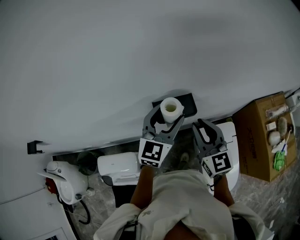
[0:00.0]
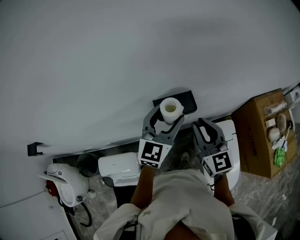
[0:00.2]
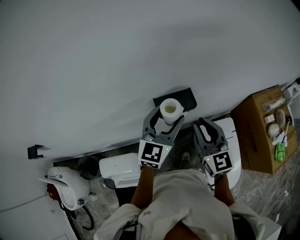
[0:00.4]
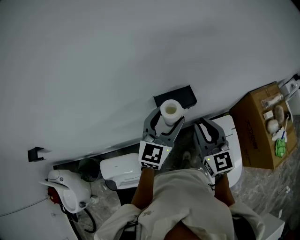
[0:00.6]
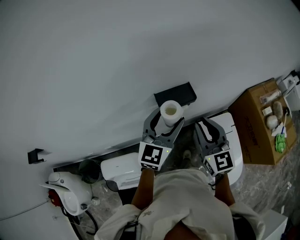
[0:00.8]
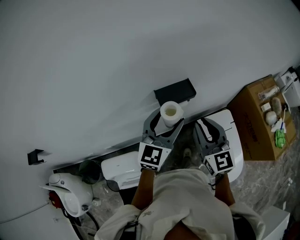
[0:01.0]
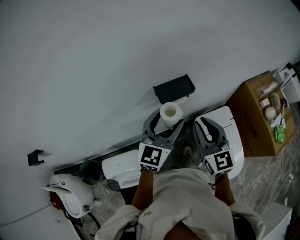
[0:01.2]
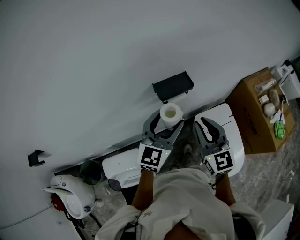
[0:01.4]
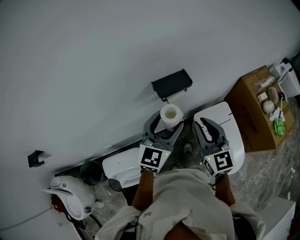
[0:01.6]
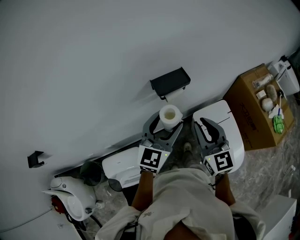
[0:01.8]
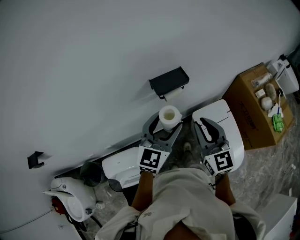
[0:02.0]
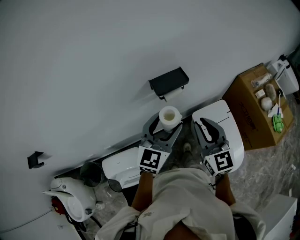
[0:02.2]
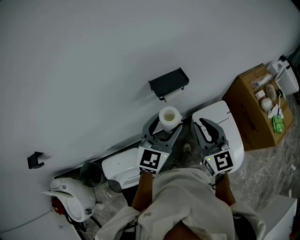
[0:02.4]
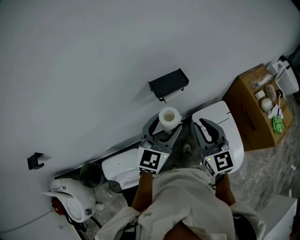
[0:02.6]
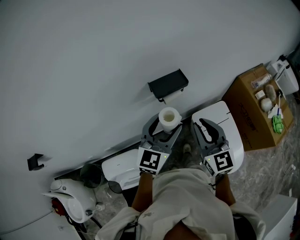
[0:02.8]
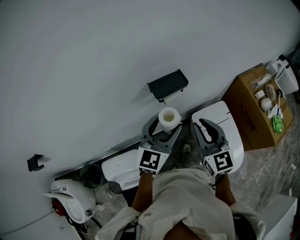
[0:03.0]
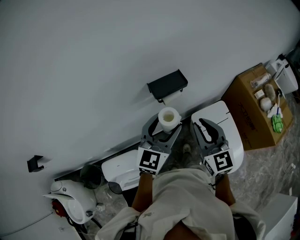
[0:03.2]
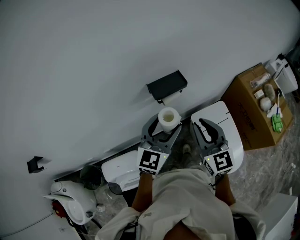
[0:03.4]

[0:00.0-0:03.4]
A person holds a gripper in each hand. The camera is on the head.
0.0 to 1.6 s: The two grippers go about 15 cm backward.
1.6 to 3.4 s: The grippers stay close to where they were, moving slightly.

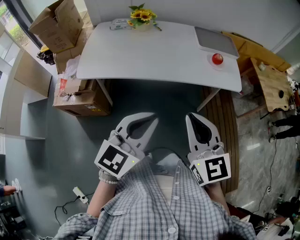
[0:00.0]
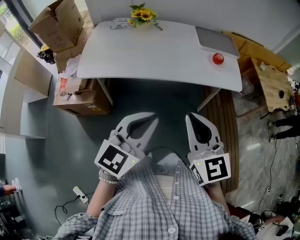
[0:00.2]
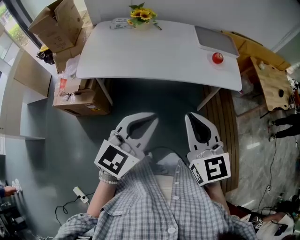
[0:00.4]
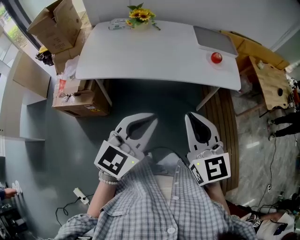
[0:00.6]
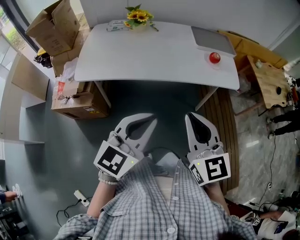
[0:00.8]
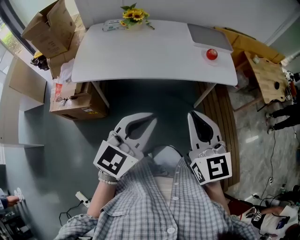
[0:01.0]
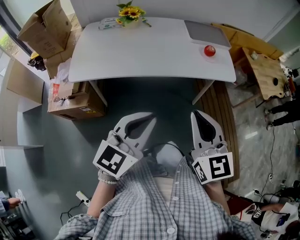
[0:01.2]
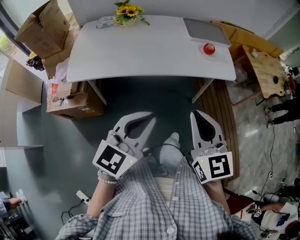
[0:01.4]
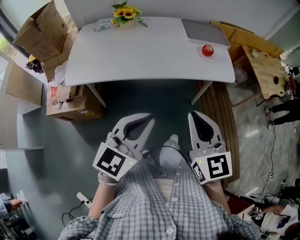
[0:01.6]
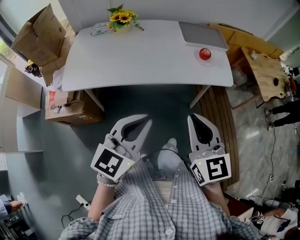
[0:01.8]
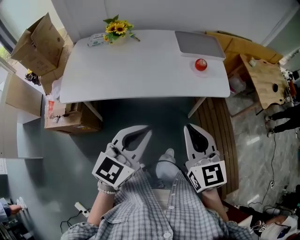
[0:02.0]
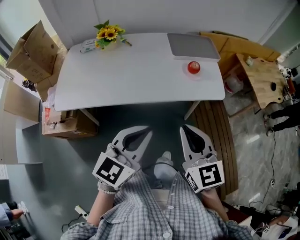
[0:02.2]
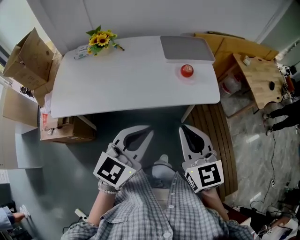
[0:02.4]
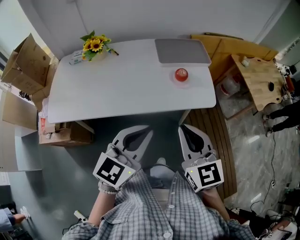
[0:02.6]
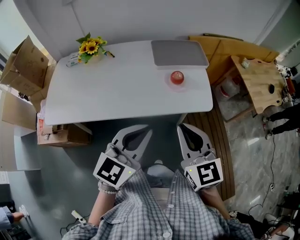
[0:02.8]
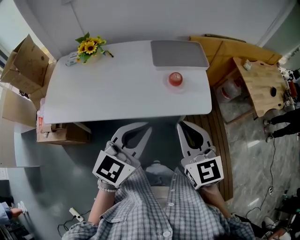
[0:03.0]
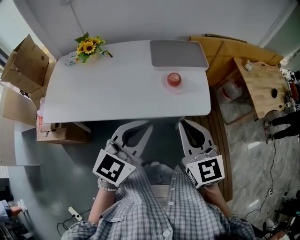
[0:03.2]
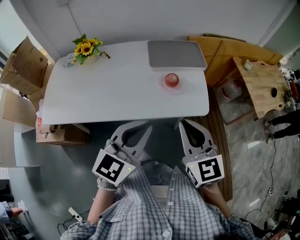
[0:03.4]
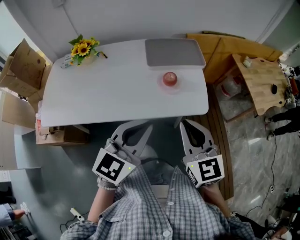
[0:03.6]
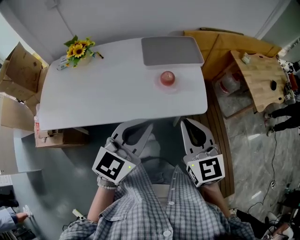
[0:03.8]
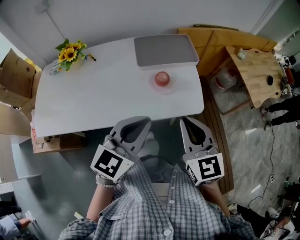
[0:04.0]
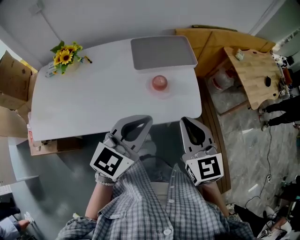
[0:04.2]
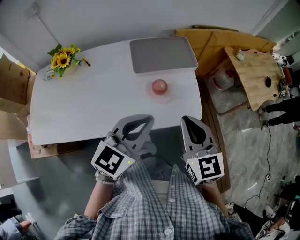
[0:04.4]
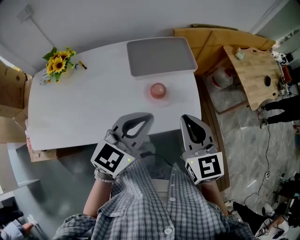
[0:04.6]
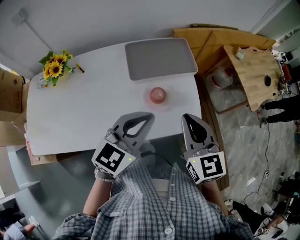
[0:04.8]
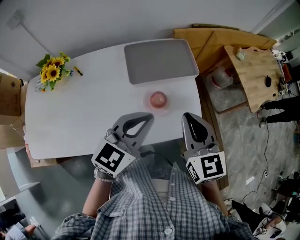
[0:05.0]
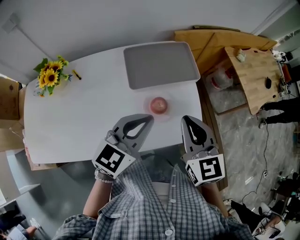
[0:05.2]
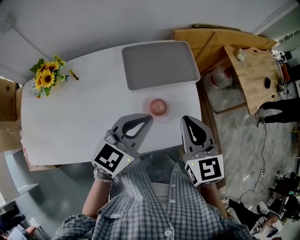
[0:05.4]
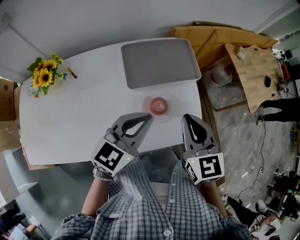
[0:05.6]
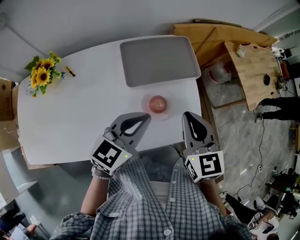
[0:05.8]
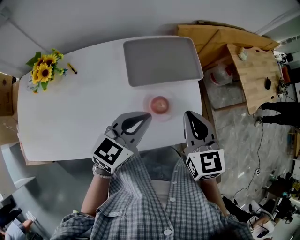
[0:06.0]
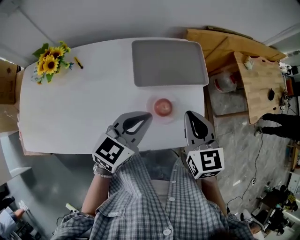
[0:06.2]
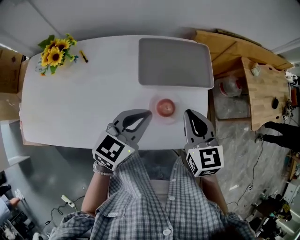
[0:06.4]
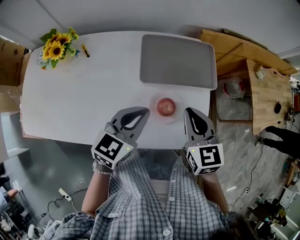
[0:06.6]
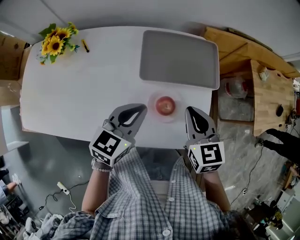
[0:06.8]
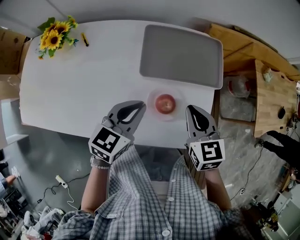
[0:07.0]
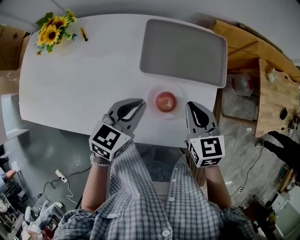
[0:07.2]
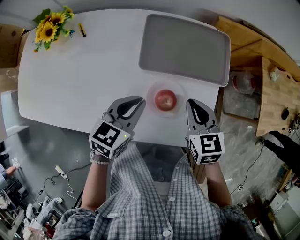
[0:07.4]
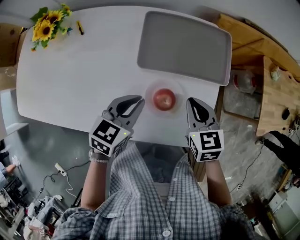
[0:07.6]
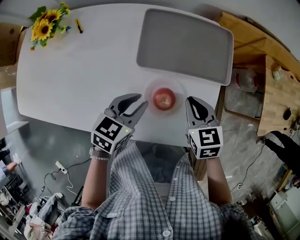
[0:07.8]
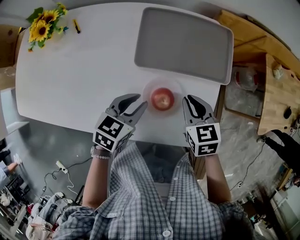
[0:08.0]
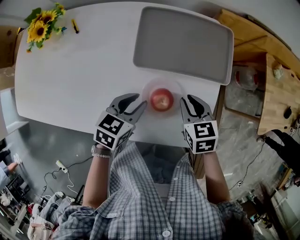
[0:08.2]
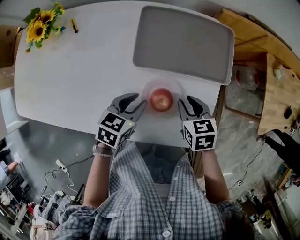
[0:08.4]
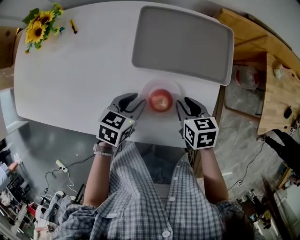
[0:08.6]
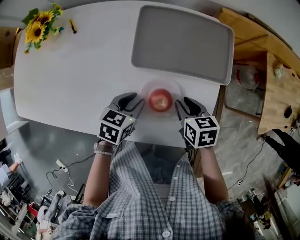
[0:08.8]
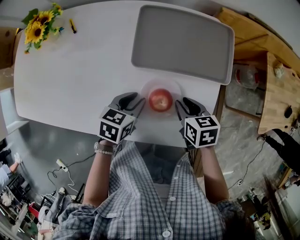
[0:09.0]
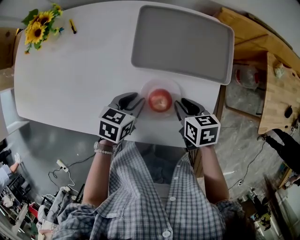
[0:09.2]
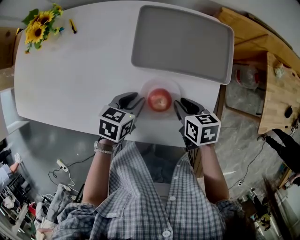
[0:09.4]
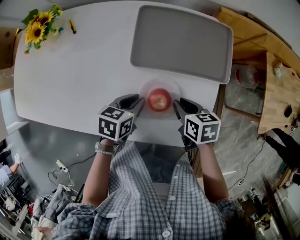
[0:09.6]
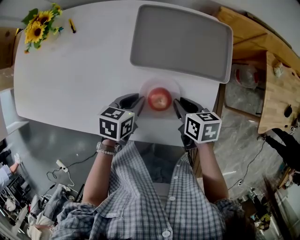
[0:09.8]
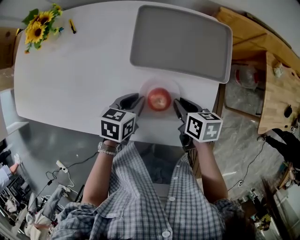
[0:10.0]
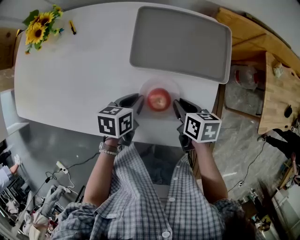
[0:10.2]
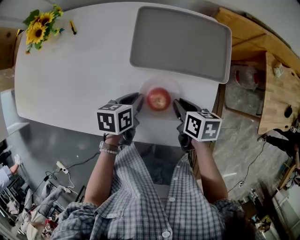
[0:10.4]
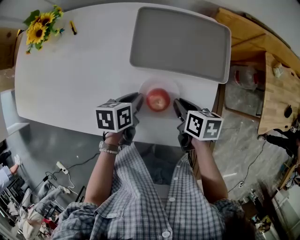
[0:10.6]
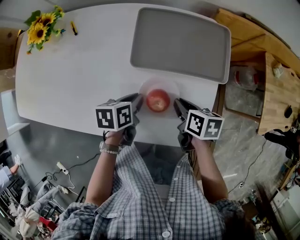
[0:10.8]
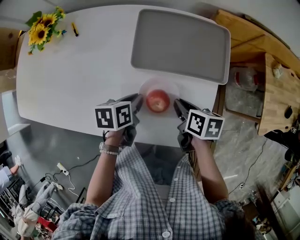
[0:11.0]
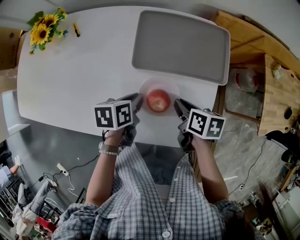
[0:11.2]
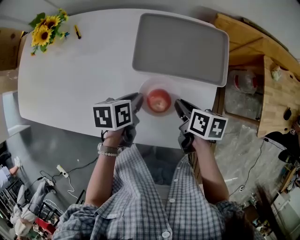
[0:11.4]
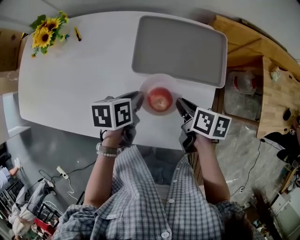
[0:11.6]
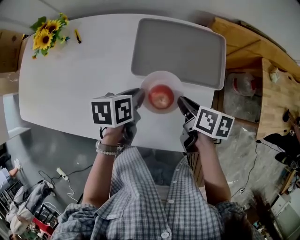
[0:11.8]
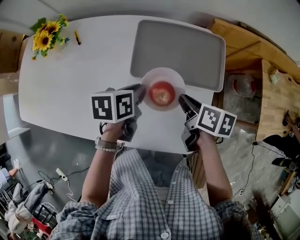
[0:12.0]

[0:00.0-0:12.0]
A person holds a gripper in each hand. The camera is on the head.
0.0 to 1.6 s: The grippers make only small movements.
1.6 to 3.0 s: The grippers both shift forward and to the right by approximately 25 cm.
3.0 to 4.4 s: The left gripper is displaced forward by about 15 cm. The right gripper moves forward and to the right, roughly 15 cm.
4.4 to 6.0 s: The left gripper shifts roughly 15 cm forward and downward. The right gripper heads forward, covering roughly 15 cm.
6.0 to 7.6 s: The right gripper is displaced downward and forward by some 15 cm, and swivels about 30 degrees. Meanwhile the left gripper shifts roughly 10 cm downward, and rotates some 30 degrees.
7.6 to 9.0 s: Both grippers travel together downward, roughly 10 cm. The right gripper changes its angle by about 30 degrees. The left gripper opens.
9.0 to 10.4 s: The left gripper swivels about 20 degrees.
10.4 to 12.0 s: Both grippers move upward and forward, some 10 cm.

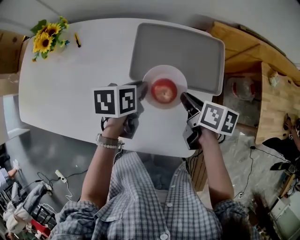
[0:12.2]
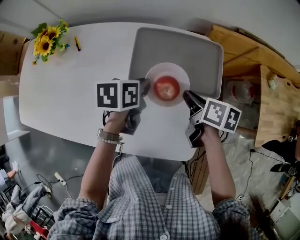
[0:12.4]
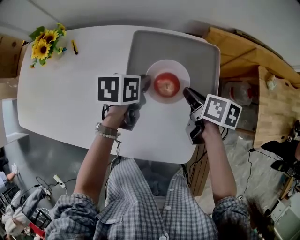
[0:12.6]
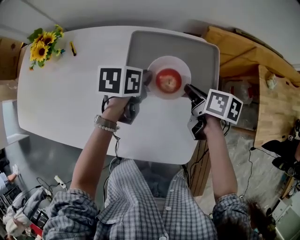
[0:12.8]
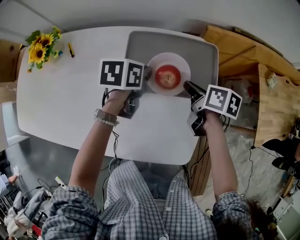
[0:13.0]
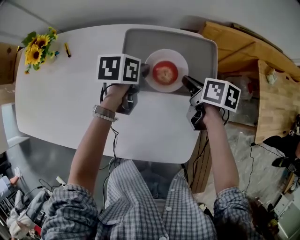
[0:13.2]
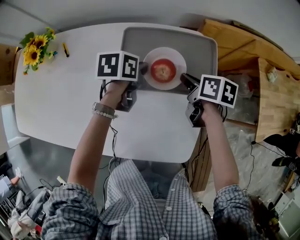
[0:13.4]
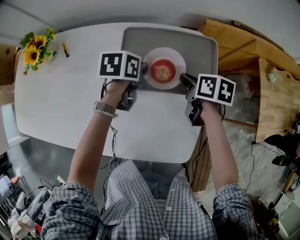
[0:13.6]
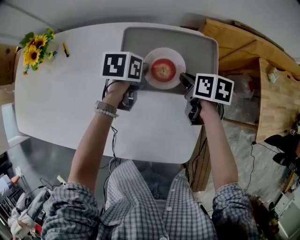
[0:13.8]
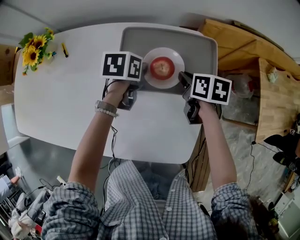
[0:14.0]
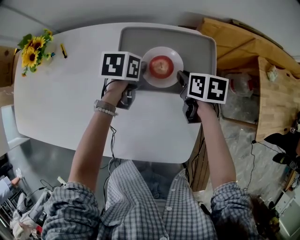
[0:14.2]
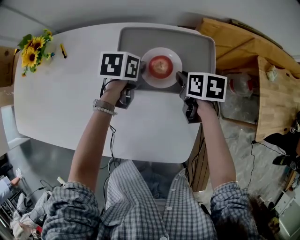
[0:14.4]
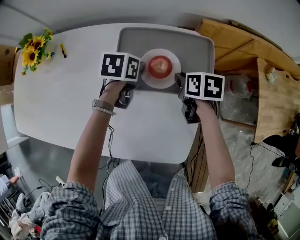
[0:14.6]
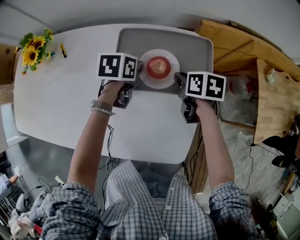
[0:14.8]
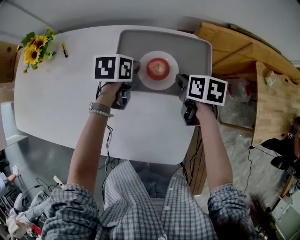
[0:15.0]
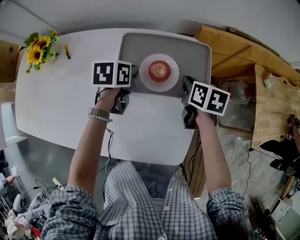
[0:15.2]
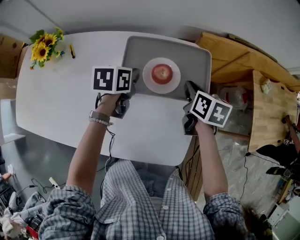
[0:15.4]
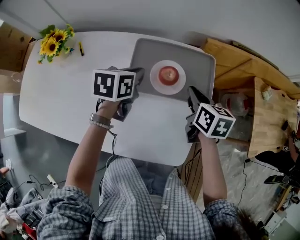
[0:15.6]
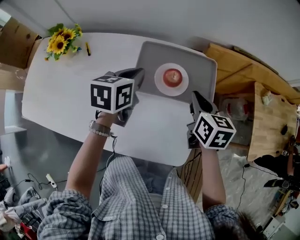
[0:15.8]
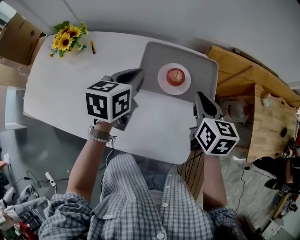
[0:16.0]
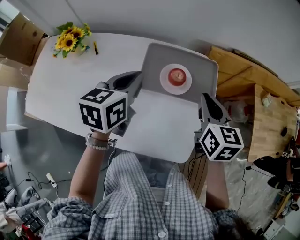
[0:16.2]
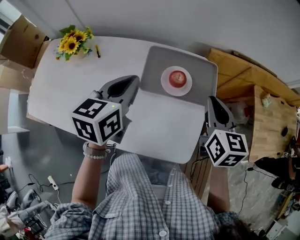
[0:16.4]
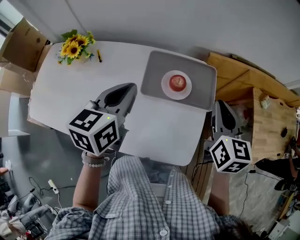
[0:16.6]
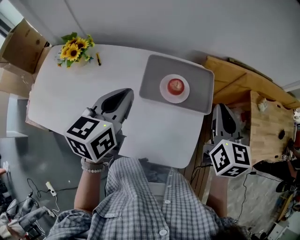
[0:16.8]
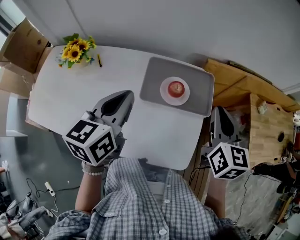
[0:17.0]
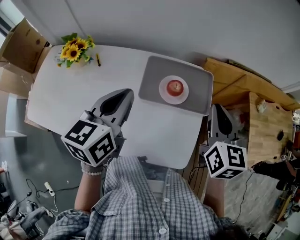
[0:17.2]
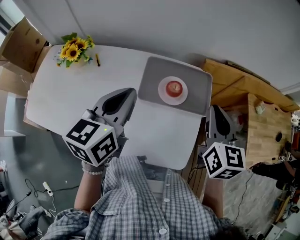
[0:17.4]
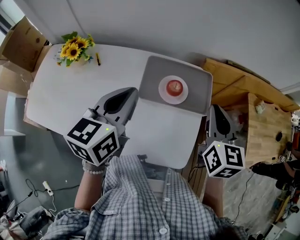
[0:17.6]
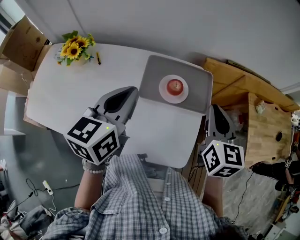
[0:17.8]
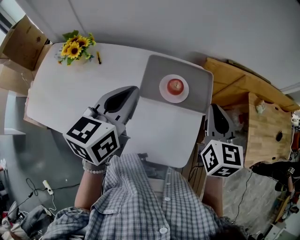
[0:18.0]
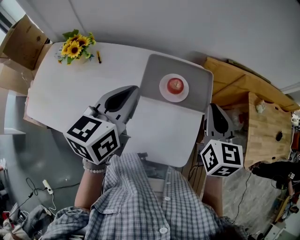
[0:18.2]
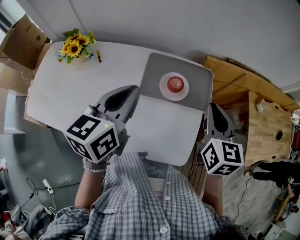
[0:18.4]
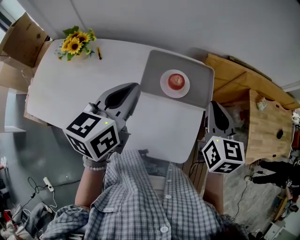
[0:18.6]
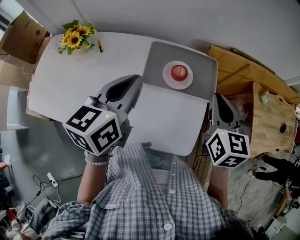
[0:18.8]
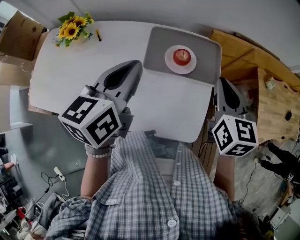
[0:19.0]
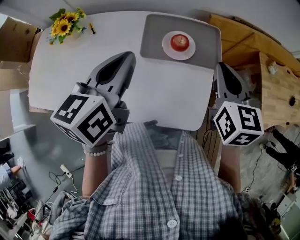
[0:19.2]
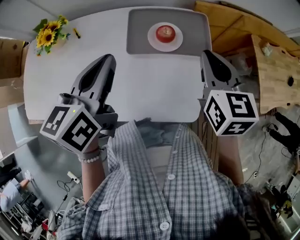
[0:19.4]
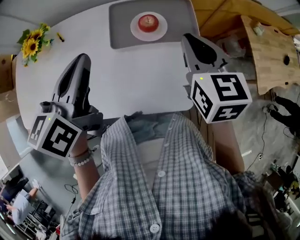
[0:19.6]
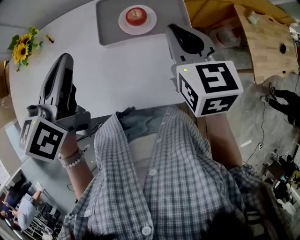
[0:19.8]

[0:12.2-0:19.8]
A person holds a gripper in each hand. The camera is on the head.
12.2 to 13.8 s: Both grippers move forward, approximately 10 cm.
13.8 to 15.2 s: There are only small adjustments of the grippers.
15.2 to 16.8 s: The grippers both shift upward and backward by about 25 cm. The left gripper angles its fingers upward, by approximately 30 degrees; the right gripper rotates some 40 degrees.
16.8 to 18.2 s: The grippers make only small movements.
18.2 to 19.8 s: There are only small adjustments of the grippers.

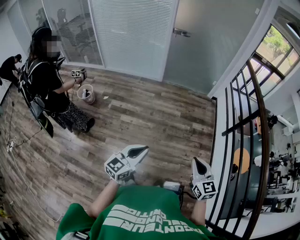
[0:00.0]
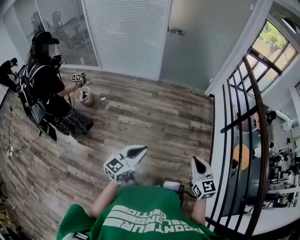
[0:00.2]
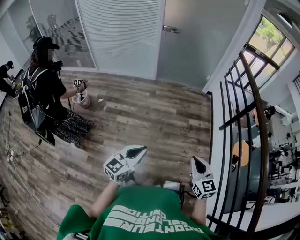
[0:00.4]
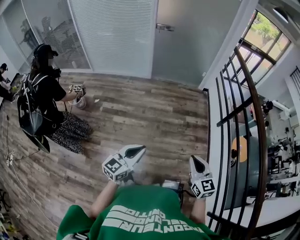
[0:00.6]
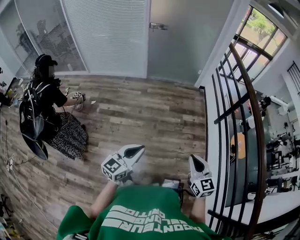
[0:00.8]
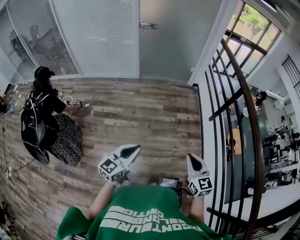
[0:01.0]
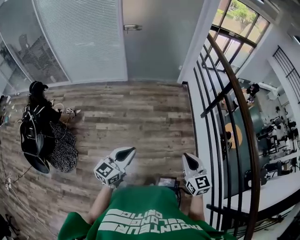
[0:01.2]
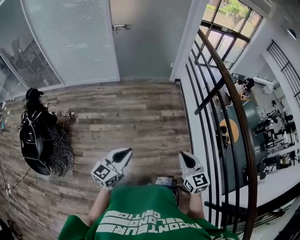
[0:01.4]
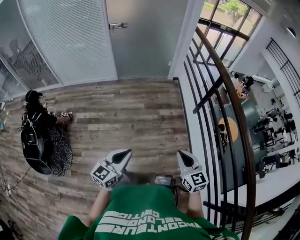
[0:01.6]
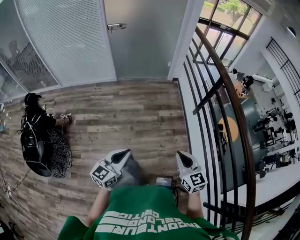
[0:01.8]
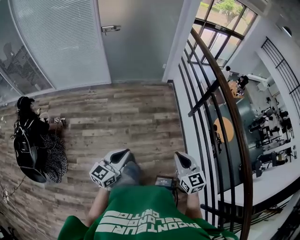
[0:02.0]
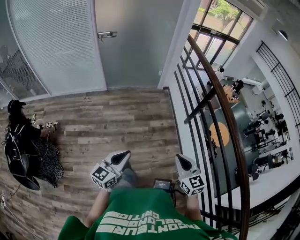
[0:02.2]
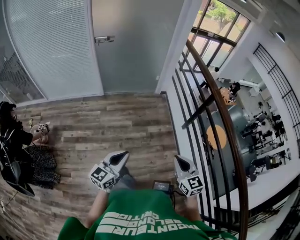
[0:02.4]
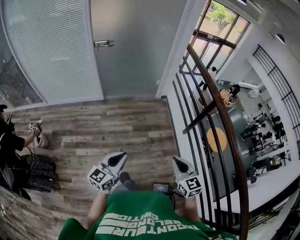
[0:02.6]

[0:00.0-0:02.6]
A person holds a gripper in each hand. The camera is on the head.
0.0 to 1.2 s: Both grippers move to the right, some 10 cm.
1.2 to 2.6 s: Both grippers move forward, about 20 cm.
